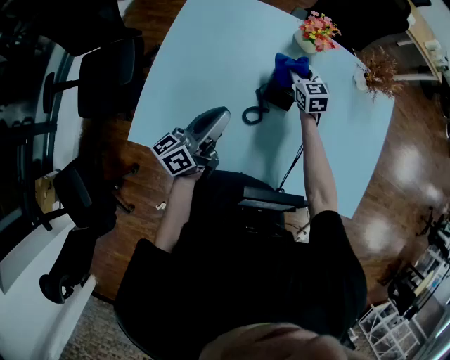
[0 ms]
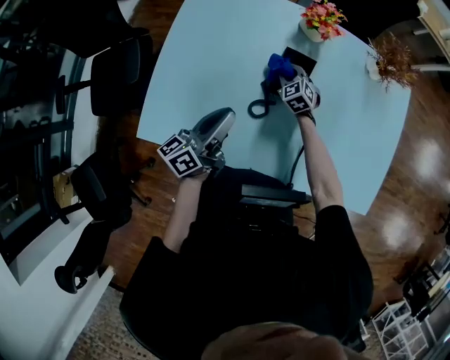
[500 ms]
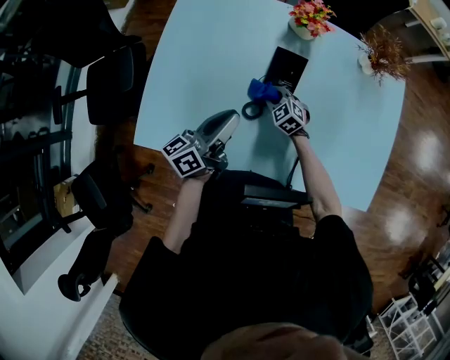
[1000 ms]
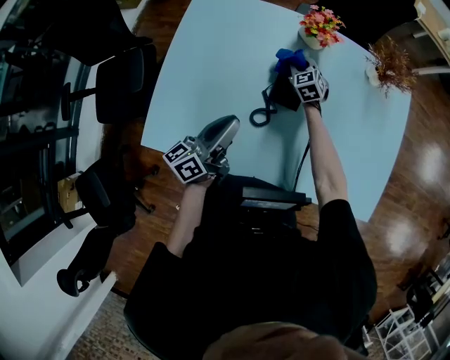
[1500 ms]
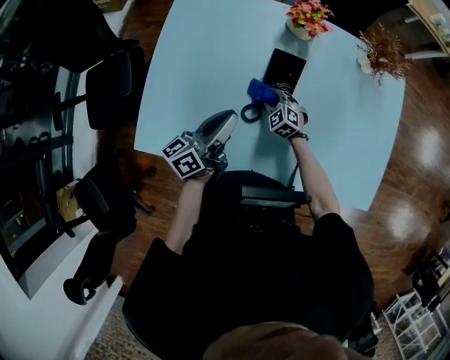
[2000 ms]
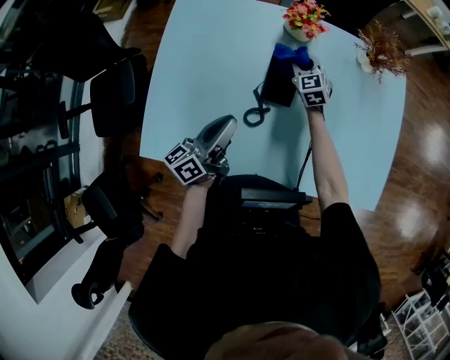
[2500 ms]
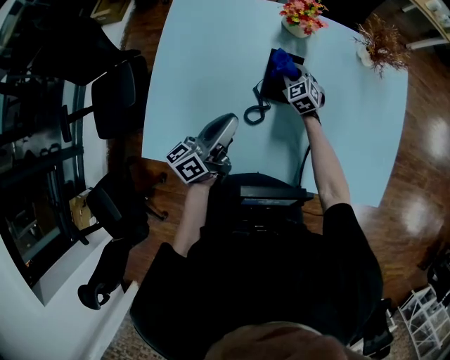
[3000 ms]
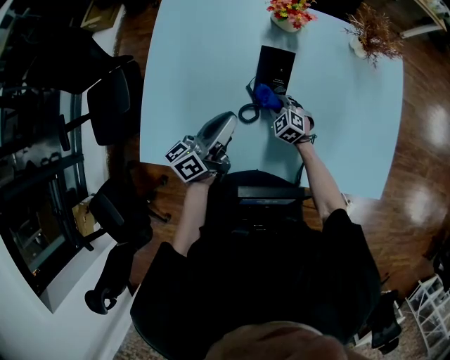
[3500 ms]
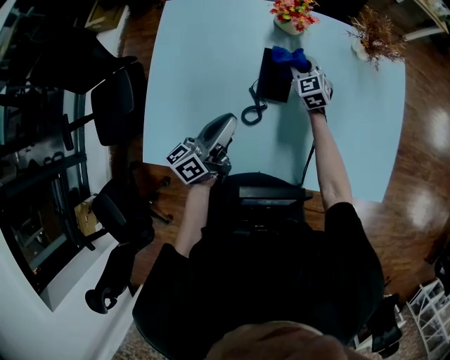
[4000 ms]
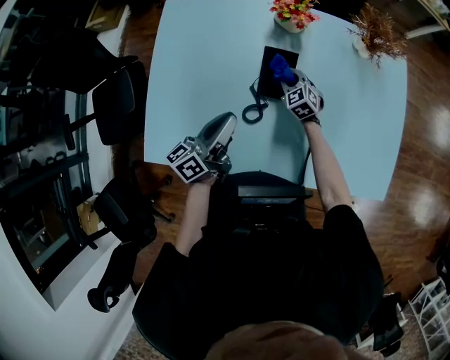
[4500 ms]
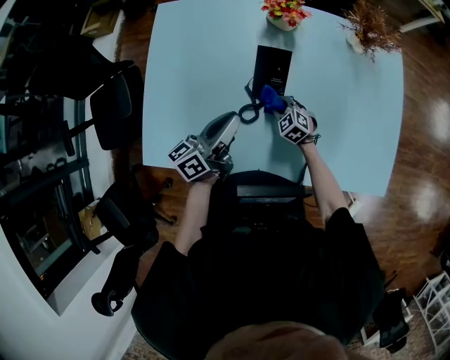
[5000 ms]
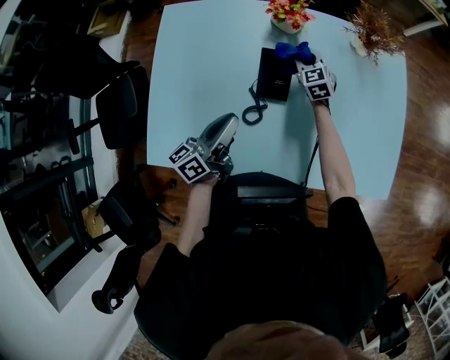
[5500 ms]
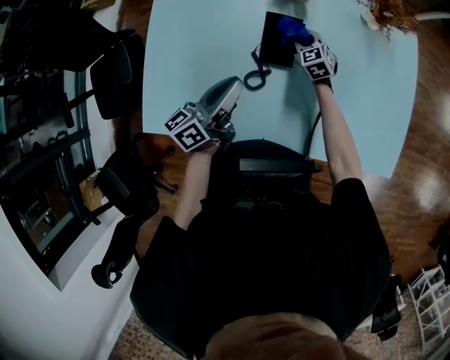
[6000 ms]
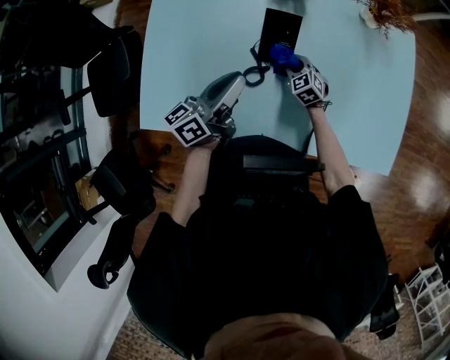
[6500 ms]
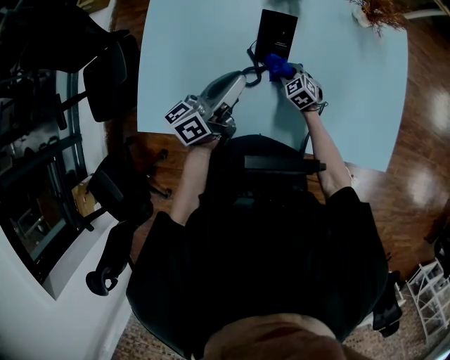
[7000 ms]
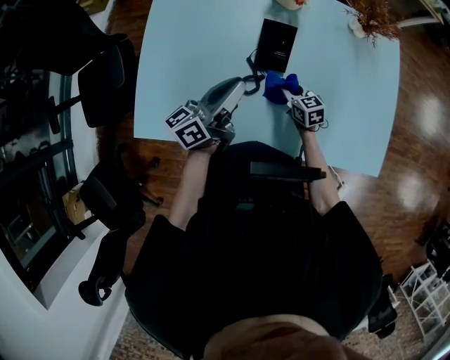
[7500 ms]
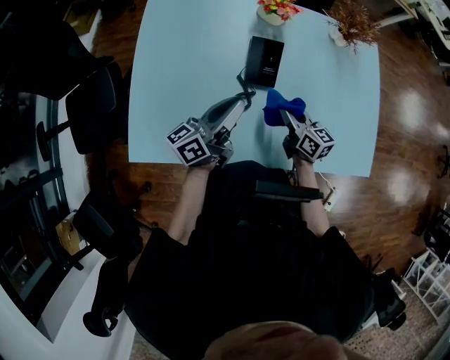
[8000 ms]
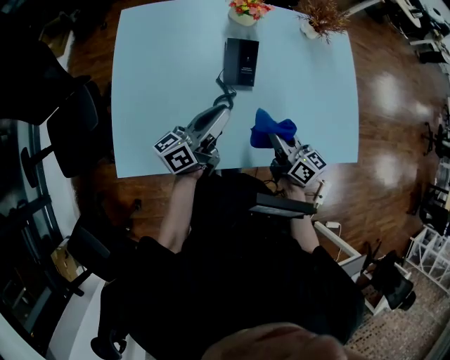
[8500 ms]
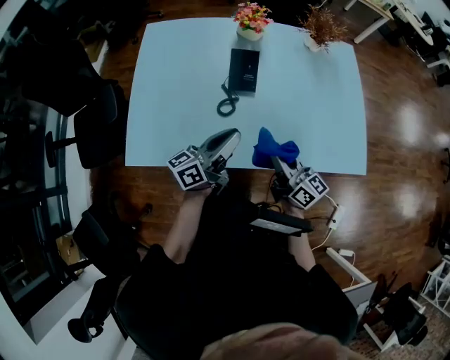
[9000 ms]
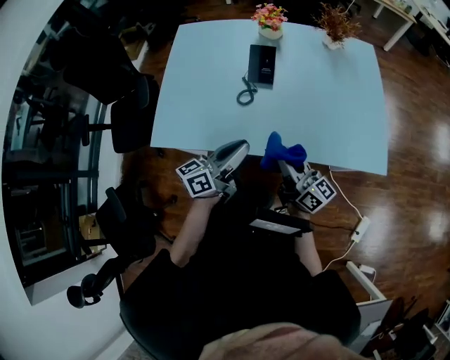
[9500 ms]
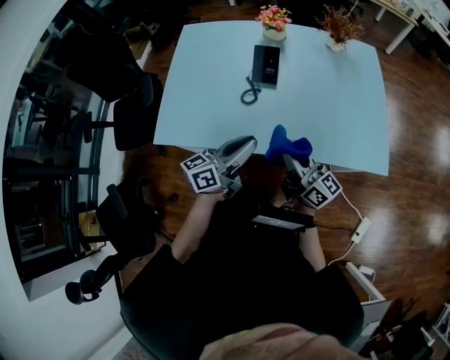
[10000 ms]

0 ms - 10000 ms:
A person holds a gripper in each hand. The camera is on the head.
0 ms - 2000 ms: The right gripper swings forward and backward, approximately 15 cm each way, with 2 reversals, and changes its angle by approximately 40 degrees. Meanwhile the left gripper shifts roughly 5 cm to the right.
2000 ms - 4000 ms: The right gripper moves forward and backward over roughly 20 cm, changing direction 2 times, and changes its angle by approximately 30 degrees.
4000 ms - 6000 ms: The right gripper swings forward and backward, some 20 cm each way, with 2 reversals.
6000 ms - 8000 ms: The right gripper is displaced backward and upward by some 25 cm, and rotates around the line of its fingers by approximately 50 degrees, clockwise from behind.
8000 ms - 10000 ms: The right gripper heads backward and upward, covering about 35 cm, and tilts its fingers approximately 30 degrees upward. The left gripper heads backward and to the right, covering about 35 cm.

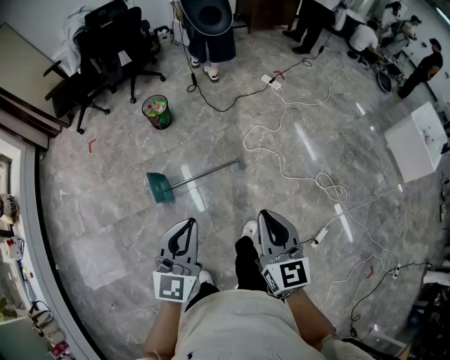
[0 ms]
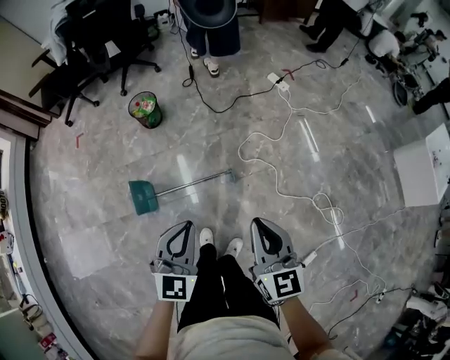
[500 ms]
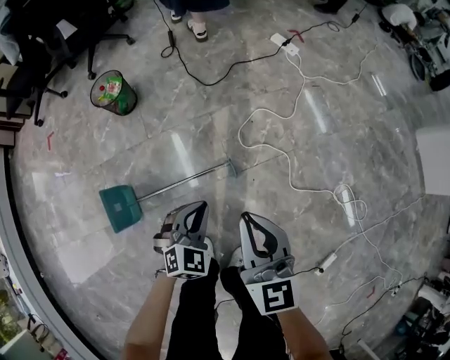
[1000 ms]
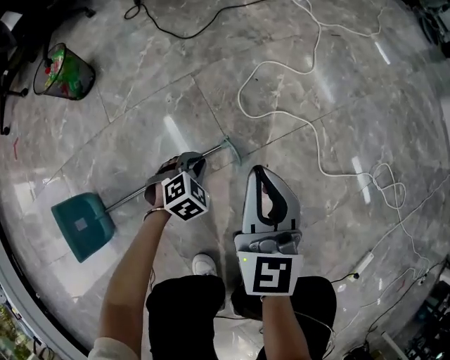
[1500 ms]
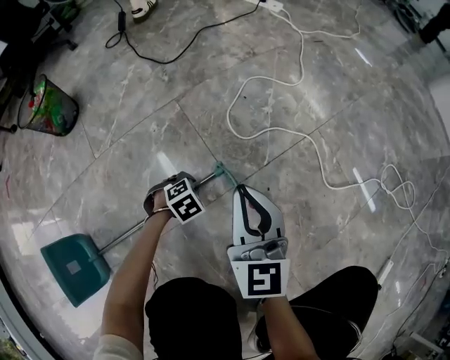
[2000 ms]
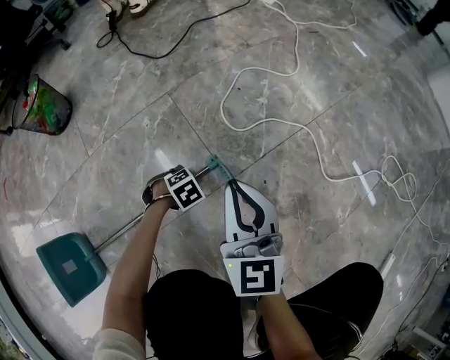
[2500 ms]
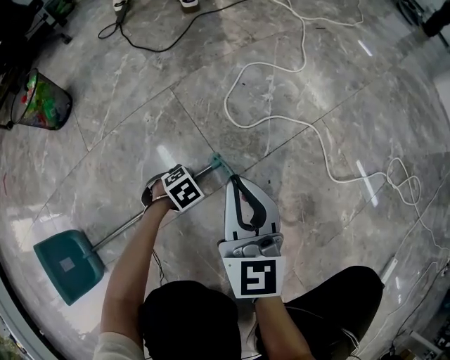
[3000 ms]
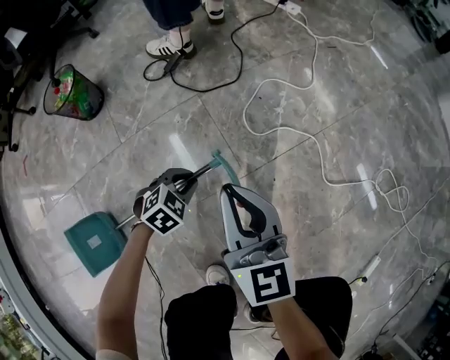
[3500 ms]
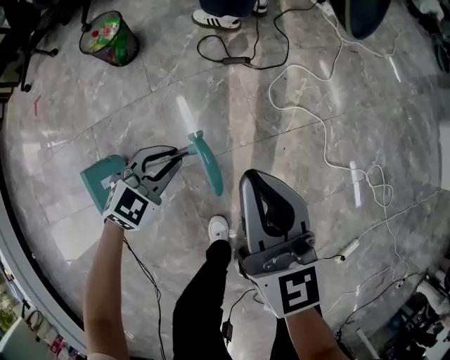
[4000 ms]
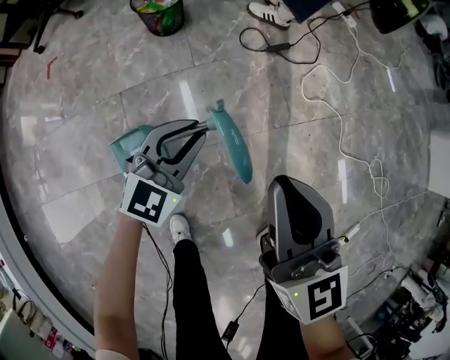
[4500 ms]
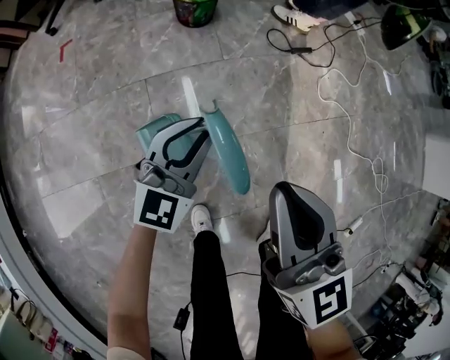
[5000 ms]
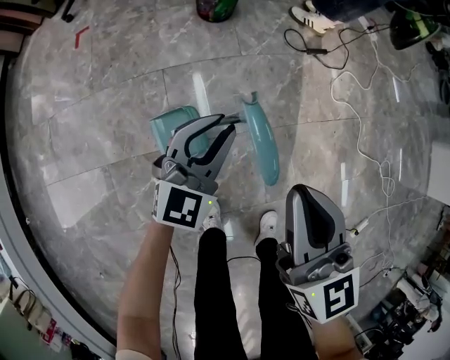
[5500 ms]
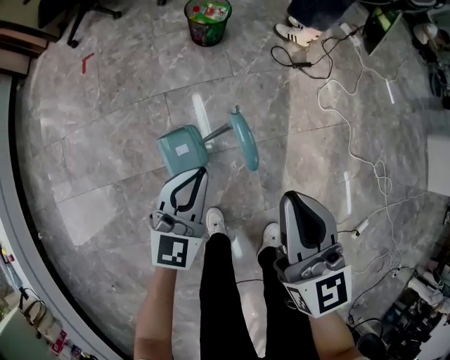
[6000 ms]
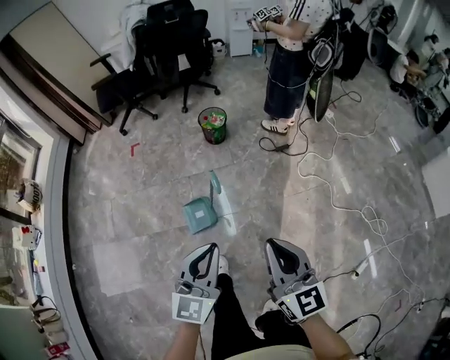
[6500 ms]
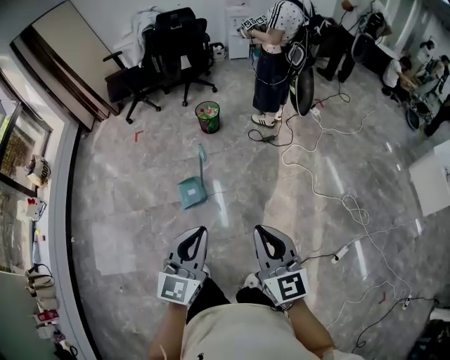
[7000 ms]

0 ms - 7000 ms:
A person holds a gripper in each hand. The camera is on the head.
0 ms - 2000 ms: Both grippers are carried about 50 cm. Both grippers move downward, about 90 cm. The left gripper angles its fingers downward, by about 70 degrees.
2000 ms - 3500 ms: The two grippers go approximately 15 cm upward.
3500 ms - 5000 ms: Both grippers are carried to the left and backward, about 50 cm. Both grippers move upward, roughly 30 cm. The left gripper tilts its fingers approximately 50 degrees upward.
5000 ms - 7000 ms: The pair of grippers is taken backward, approximately 50 cm. The two grippers go approximately 50 cm upward. The left gripper turns by about 20 degrees.

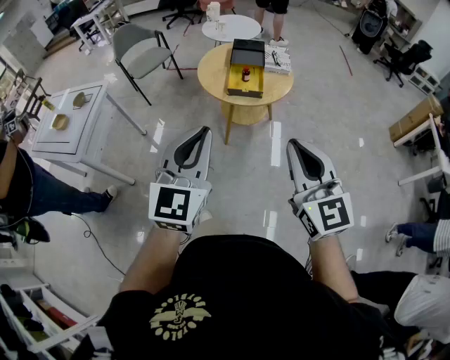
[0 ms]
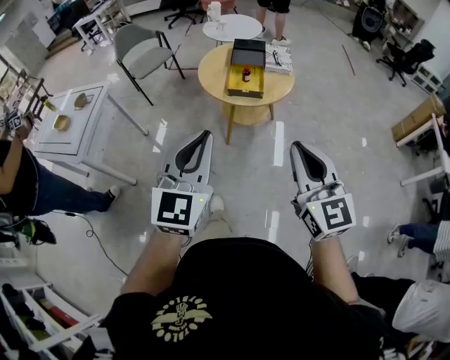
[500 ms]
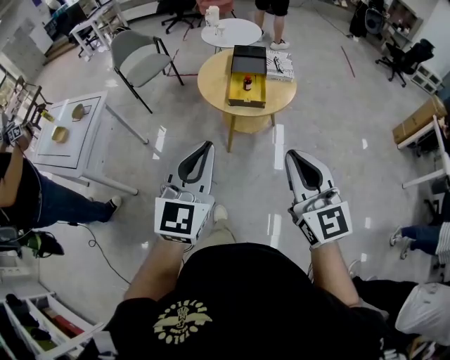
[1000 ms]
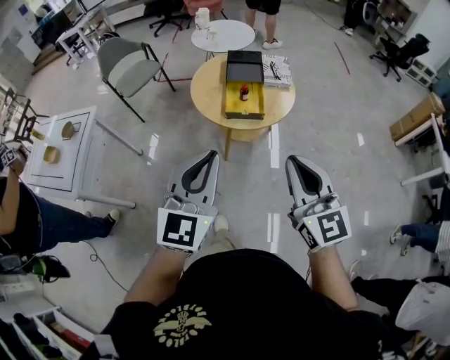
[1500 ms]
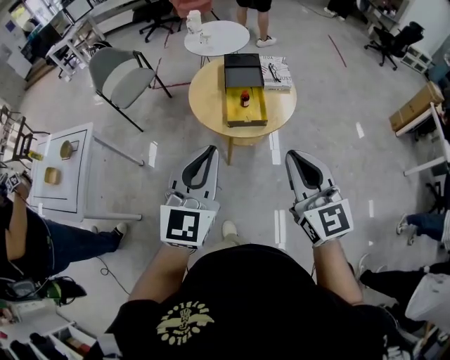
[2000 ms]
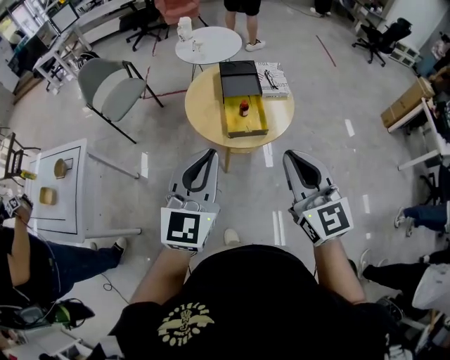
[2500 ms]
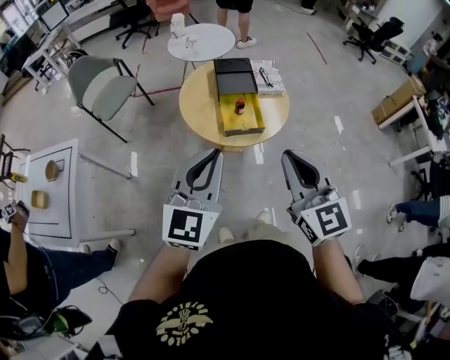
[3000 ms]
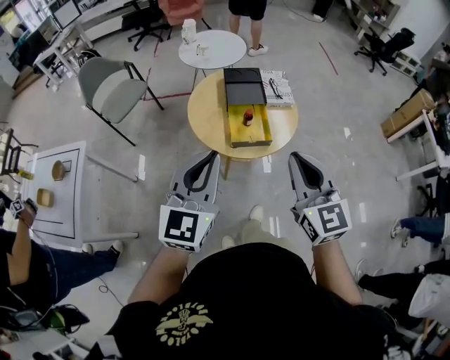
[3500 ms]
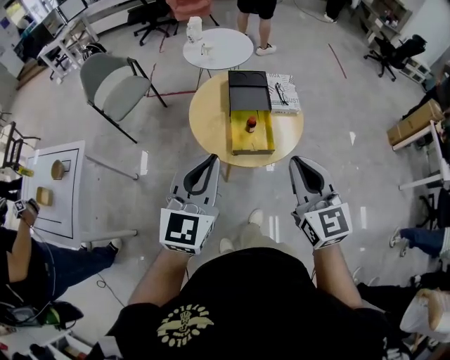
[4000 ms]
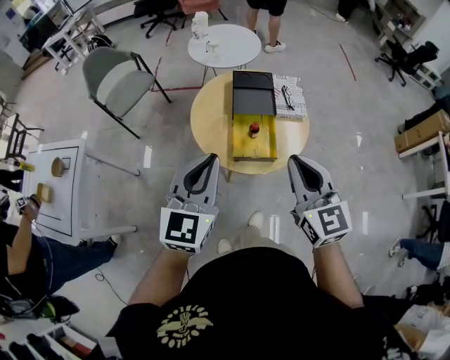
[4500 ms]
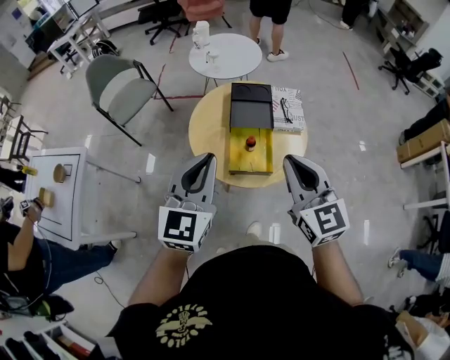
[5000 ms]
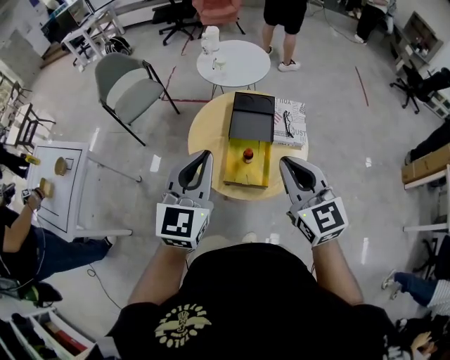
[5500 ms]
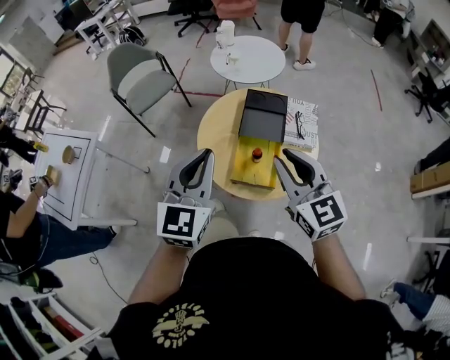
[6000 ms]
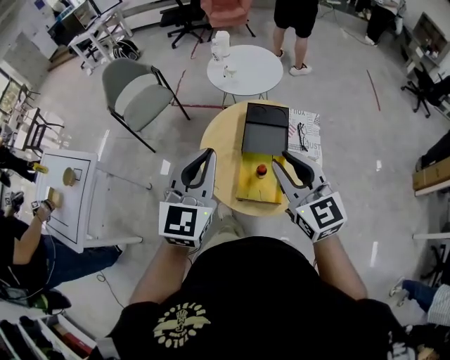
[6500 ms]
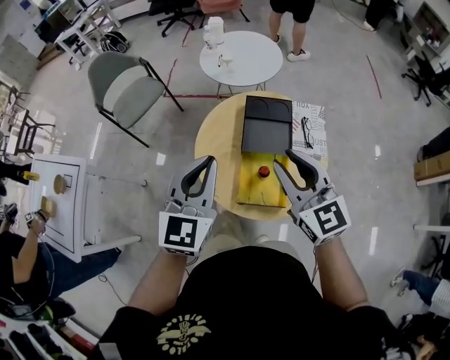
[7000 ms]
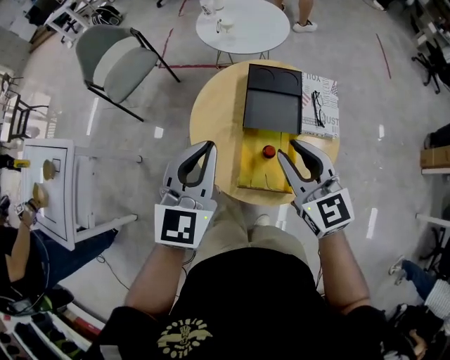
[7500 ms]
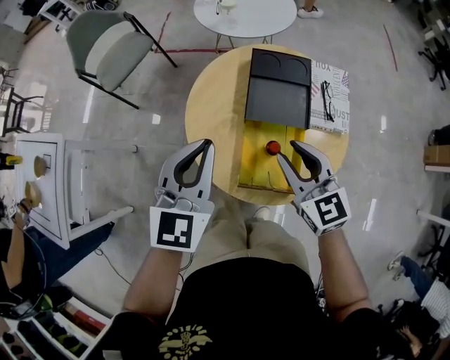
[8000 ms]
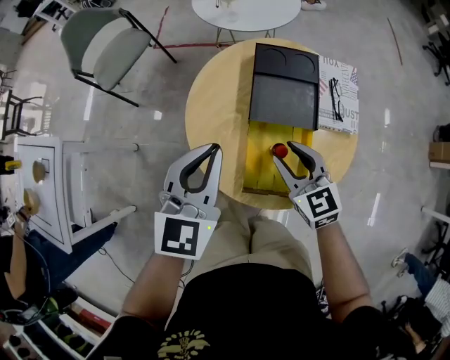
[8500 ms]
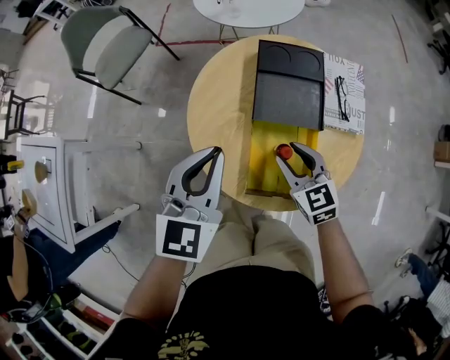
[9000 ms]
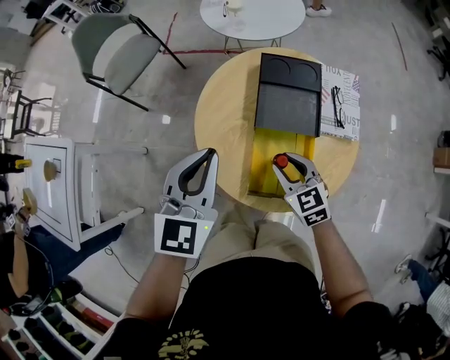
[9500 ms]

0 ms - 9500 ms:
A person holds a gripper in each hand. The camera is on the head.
0 ms - 2000 ms: Both grippers move forward, about 20 cm.
2000 ms - 4000 ms: Both grippers travel together forward, roughly 15 cm.
4000 ms - 5500 ms: The right gripper travels forward by roughly 15 cm; the left gripper moves forward and to the right, about 15 cm.
5500 ms - 7500 ms: The left gripper travels forward and downward by some 20 cm. Meanwhile the right gripper heads downward and forward, covering some 20 cm, and opens.
7500 ms - 9500 ms: The left gripper heads downward, covering about 5 cm, while the right gripper is displaced downward by approximately 20 cm, and swivels about 20 degrees.
